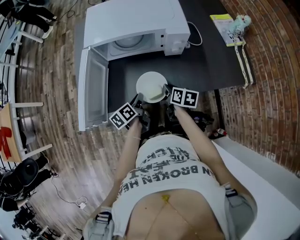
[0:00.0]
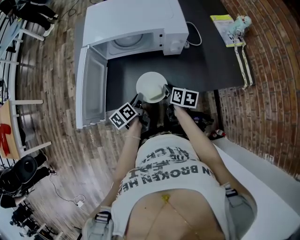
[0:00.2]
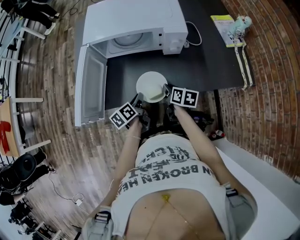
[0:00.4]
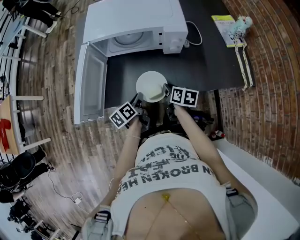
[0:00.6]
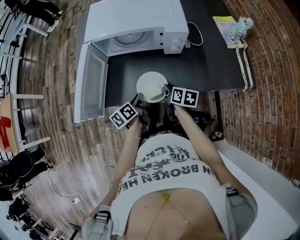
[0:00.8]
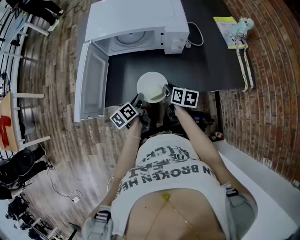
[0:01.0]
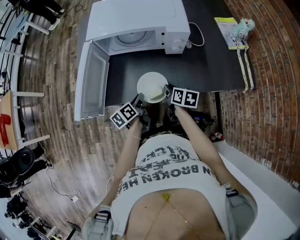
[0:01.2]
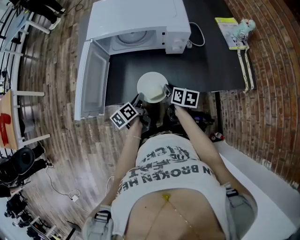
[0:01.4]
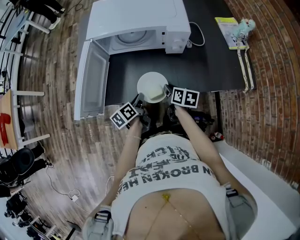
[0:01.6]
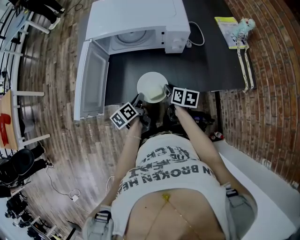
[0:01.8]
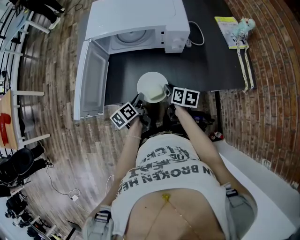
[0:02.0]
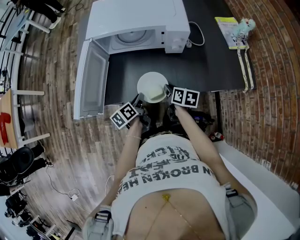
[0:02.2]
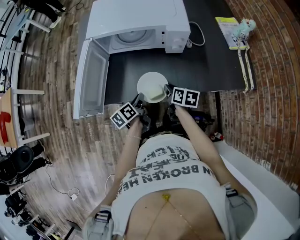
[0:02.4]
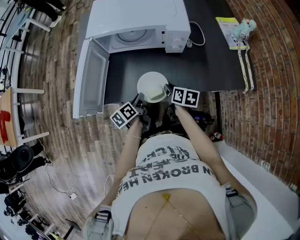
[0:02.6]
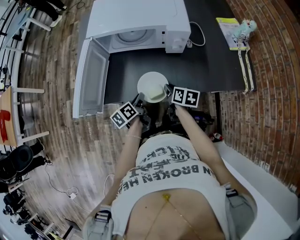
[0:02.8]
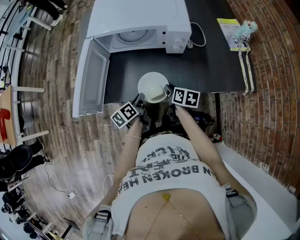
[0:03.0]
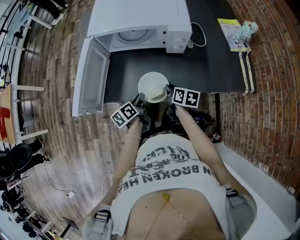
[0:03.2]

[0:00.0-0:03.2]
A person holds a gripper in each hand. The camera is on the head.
0:00.0 to 0:01.6: There are only small adjustments of the grippers.
0:01.6 to 0:03.2: The two grippers keep their place.

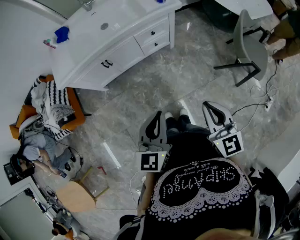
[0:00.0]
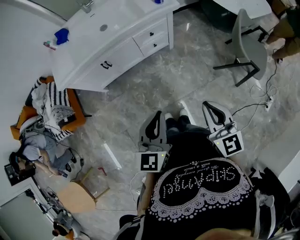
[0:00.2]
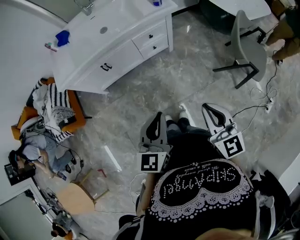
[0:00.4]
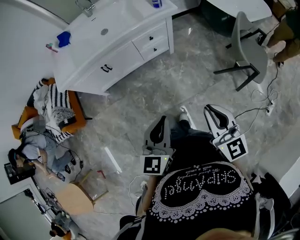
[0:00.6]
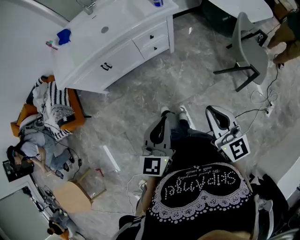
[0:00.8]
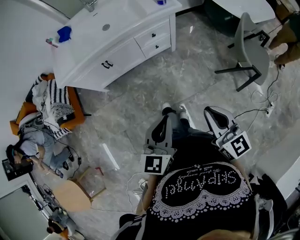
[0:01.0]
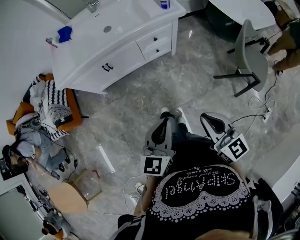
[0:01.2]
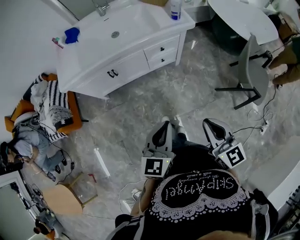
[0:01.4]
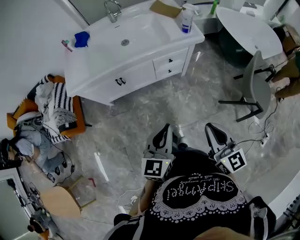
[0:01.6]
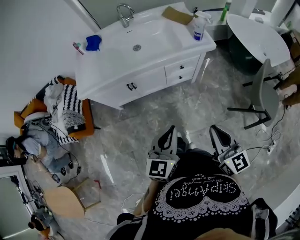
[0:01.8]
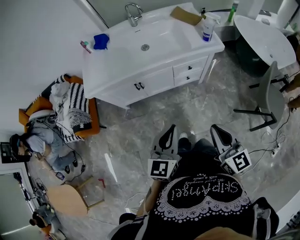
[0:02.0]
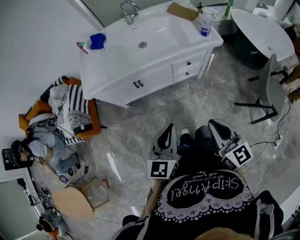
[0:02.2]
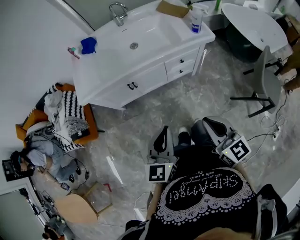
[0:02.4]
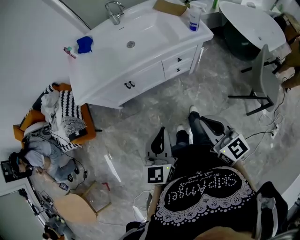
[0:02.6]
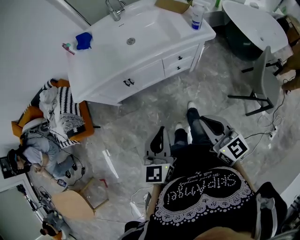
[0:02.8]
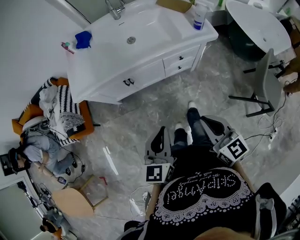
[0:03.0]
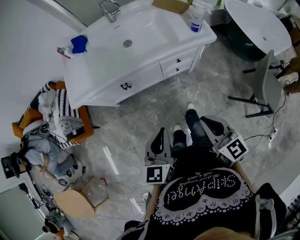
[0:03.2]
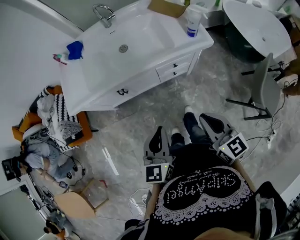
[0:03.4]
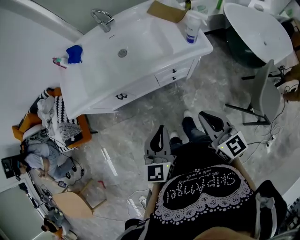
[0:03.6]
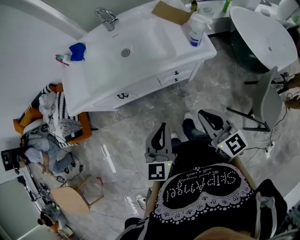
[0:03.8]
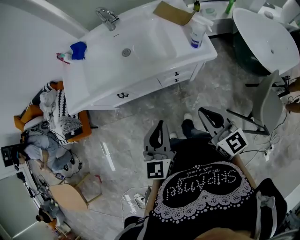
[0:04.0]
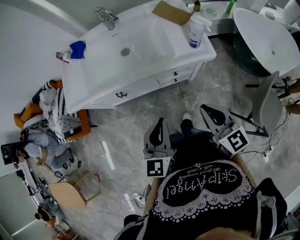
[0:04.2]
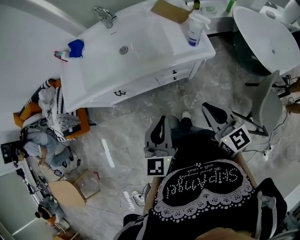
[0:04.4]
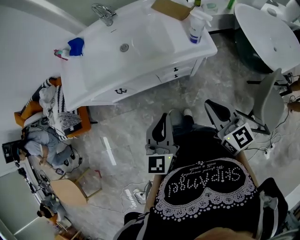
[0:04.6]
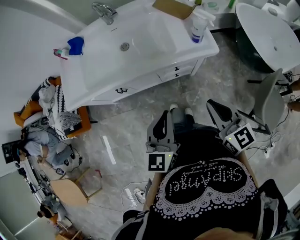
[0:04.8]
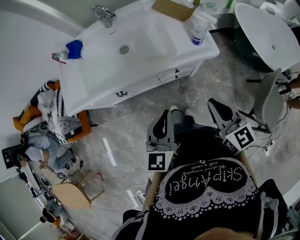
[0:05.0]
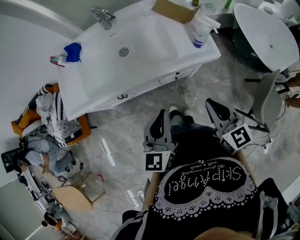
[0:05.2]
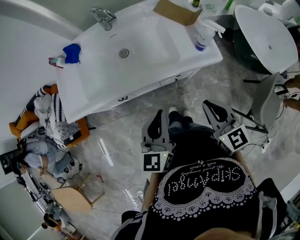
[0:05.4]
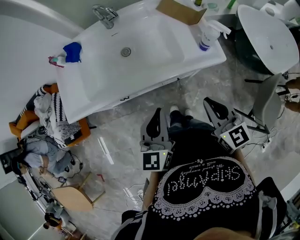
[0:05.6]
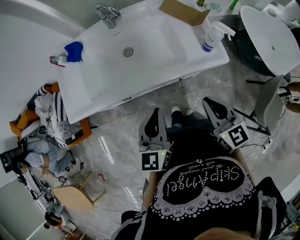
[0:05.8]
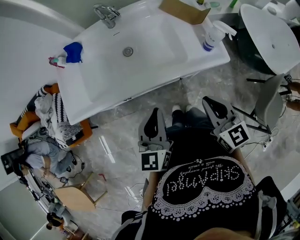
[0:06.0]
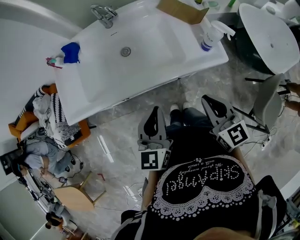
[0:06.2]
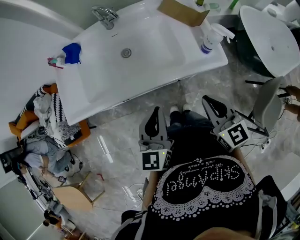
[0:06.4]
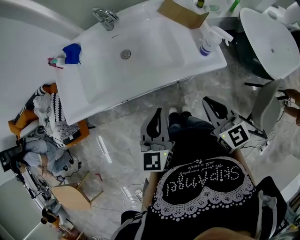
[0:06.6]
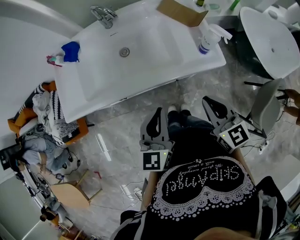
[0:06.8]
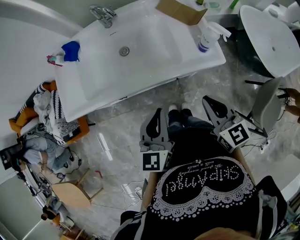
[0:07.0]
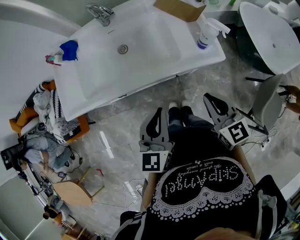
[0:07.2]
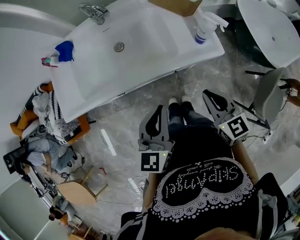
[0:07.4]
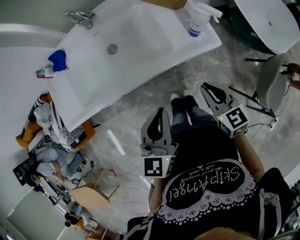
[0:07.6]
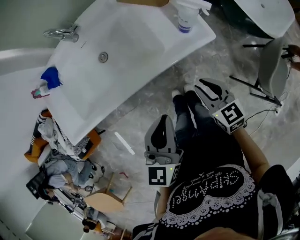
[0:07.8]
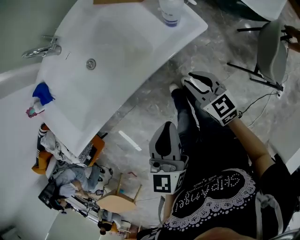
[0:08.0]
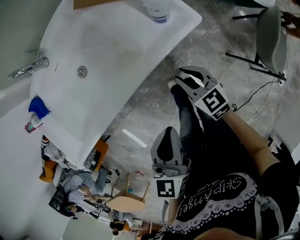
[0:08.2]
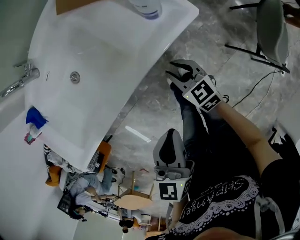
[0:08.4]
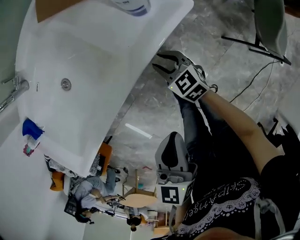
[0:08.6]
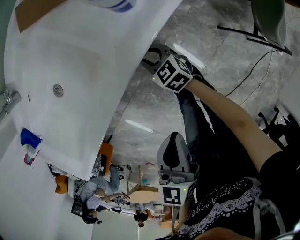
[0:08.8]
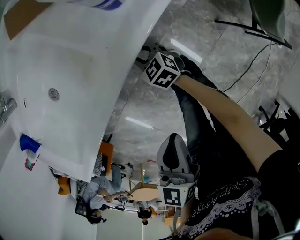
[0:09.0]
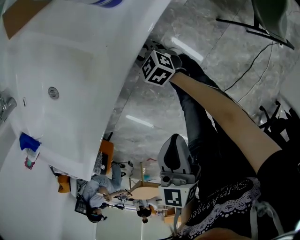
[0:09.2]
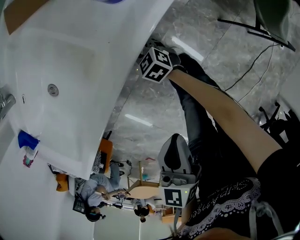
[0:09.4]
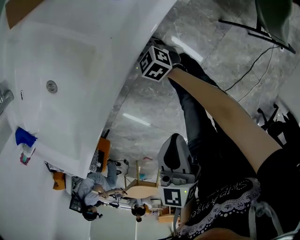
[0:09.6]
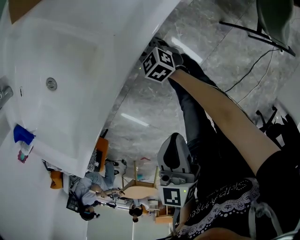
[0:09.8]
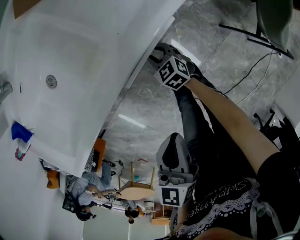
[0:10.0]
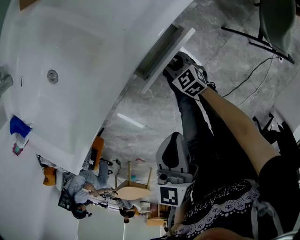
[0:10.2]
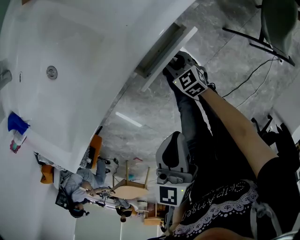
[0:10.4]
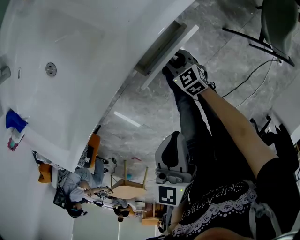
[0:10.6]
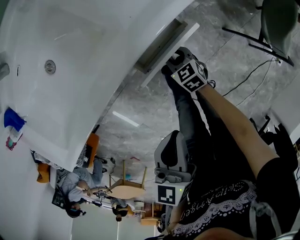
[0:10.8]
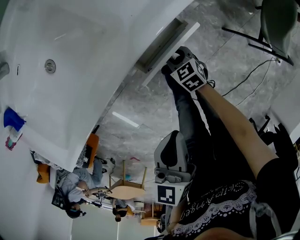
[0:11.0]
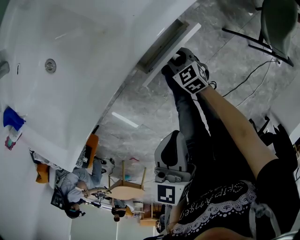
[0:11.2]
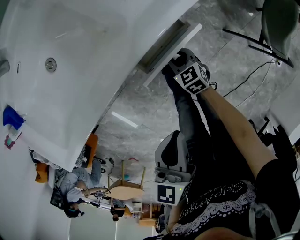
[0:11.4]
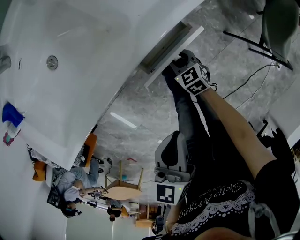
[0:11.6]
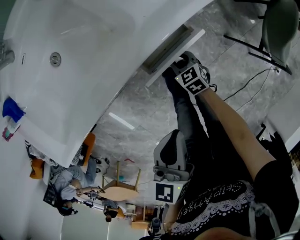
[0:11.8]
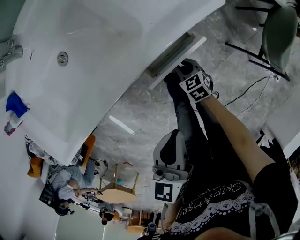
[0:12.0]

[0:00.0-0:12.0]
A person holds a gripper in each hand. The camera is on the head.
0:00.0 to 0:01.6: The grippers both shift forward by about 5 cm.
0:01.6 to 0:03.0: The left gripper is displaced to the left and forward by some 10 cm. Meanwhile the right gripper moves forward and to the left, some 10 cm.
0:03.0 to 0:04.4: Both grippers move to the right and forward, approximately 20 cm.
0:04.4 to 0:06.0: The two grippers go roughly 15 cm forward and to the left.
0:06.0 to 0:07.6: The left gripper goes some 5 cm to the right. Meanwhile the right gripper shifts roughly 10 cm downward and to the right.
0:07.6 to 0:09.0: The left gripper heads downward and to the right, covering approximately 15 cm, and turns by about 30 degrees. Meanwhile the right gripper goes approximately 35 cm downward, and opens.
0:09.0 to 0:10.4: The right gripper heads backward, covering some 10 cm.
0:10.4 to 0:12.0: The grippers stay close to where they were, moving slightly.

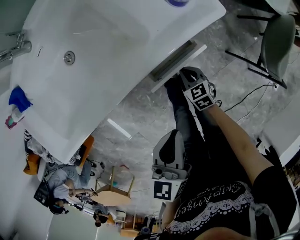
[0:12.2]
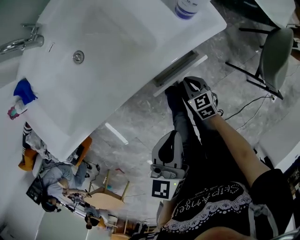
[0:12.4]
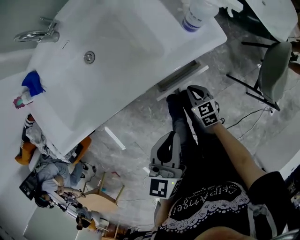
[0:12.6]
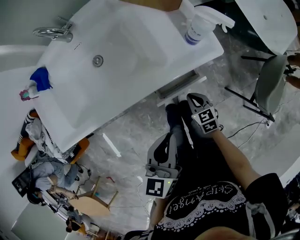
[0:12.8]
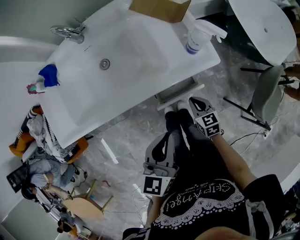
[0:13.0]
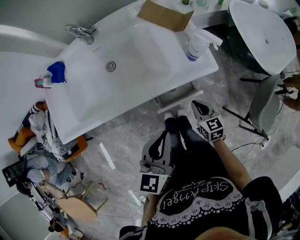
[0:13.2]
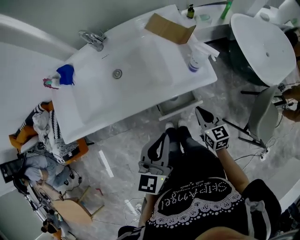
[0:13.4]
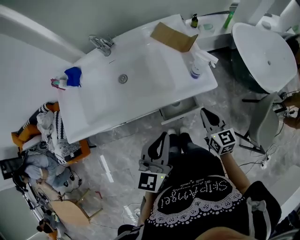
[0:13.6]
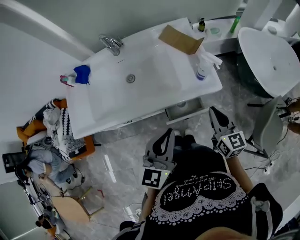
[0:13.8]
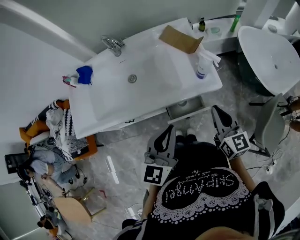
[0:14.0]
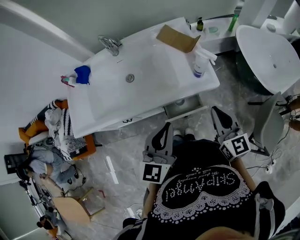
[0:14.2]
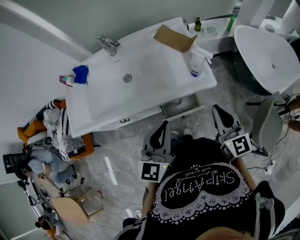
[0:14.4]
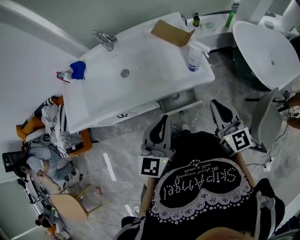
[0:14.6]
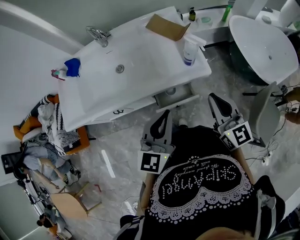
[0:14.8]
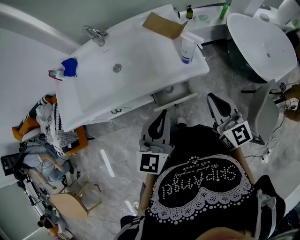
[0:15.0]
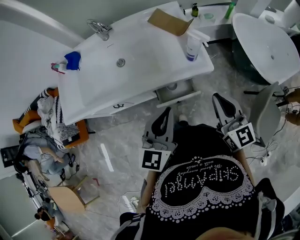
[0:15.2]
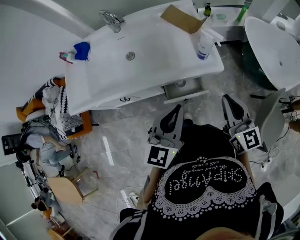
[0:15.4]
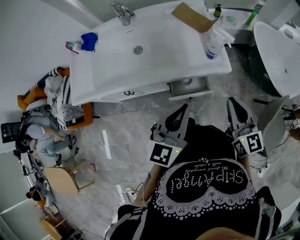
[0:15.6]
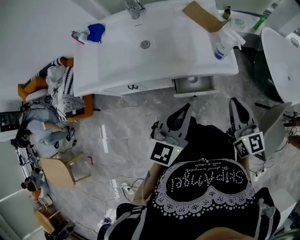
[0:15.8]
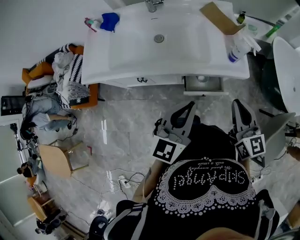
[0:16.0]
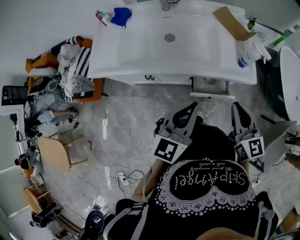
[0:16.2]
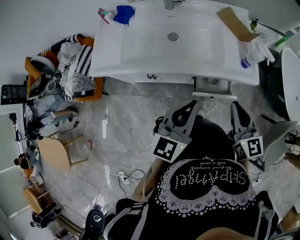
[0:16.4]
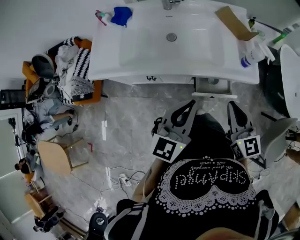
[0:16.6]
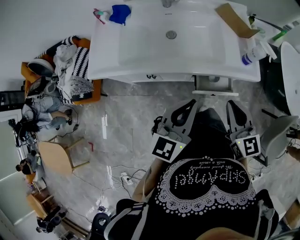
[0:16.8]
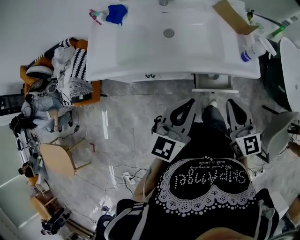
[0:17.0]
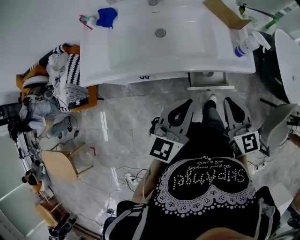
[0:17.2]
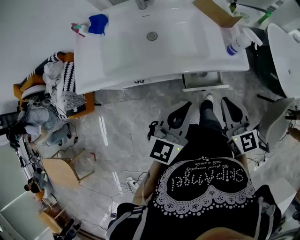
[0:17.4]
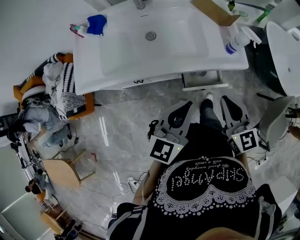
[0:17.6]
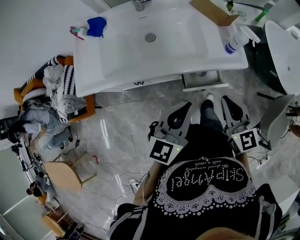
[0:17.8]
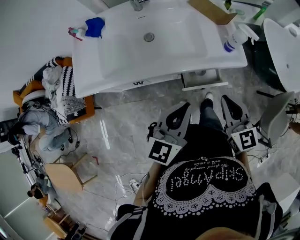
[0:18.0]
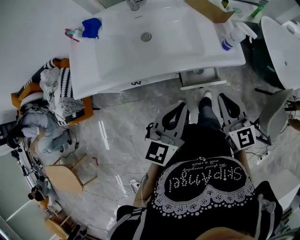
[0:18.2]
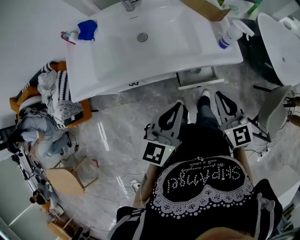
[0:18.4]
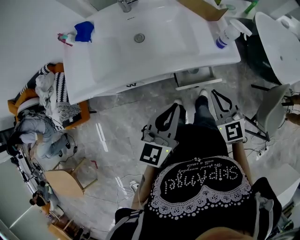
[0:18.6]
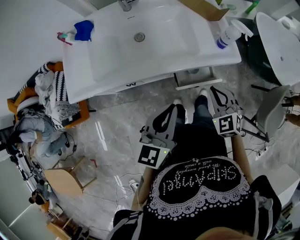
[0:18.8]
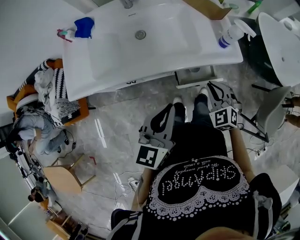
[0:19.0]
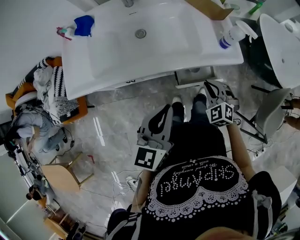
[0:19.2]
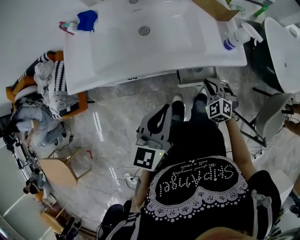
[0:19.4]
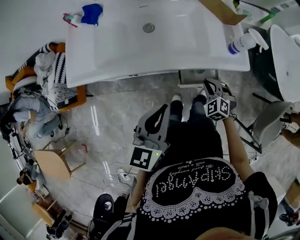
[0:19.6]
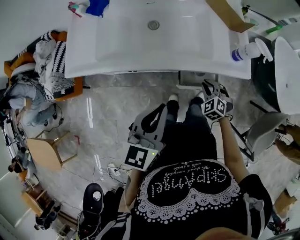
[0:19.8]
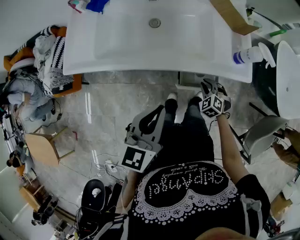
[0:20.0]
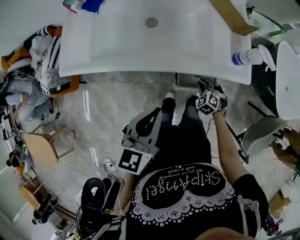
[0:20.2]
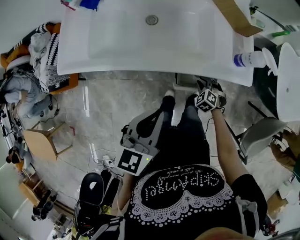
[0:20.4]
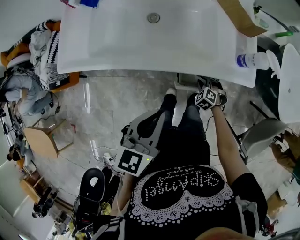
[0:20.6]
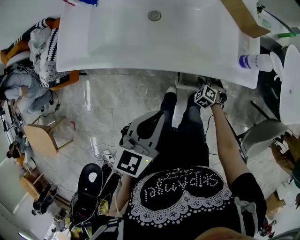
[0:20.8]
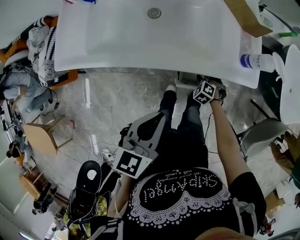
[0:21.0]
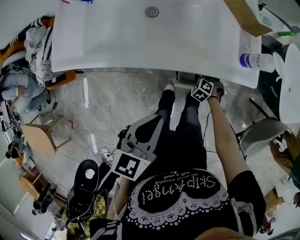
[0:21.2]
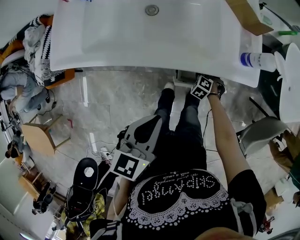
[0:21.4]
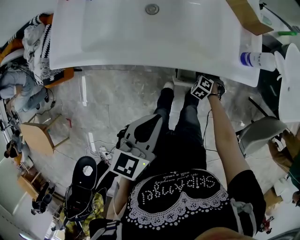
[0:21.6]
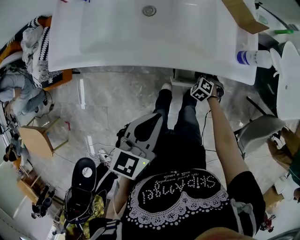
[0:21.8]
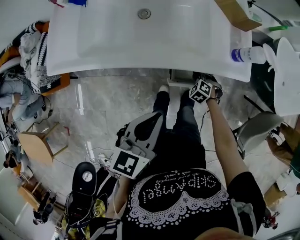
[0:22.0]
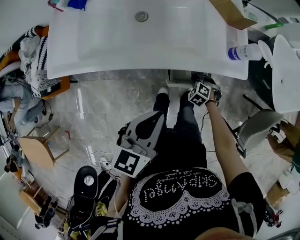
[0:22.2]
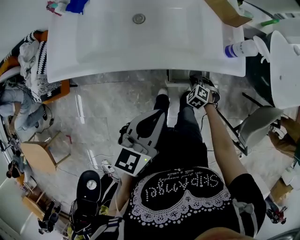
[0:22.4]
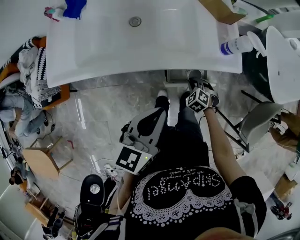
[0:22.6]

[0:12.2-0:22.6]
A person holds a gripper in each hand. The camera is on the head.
0:12.2 to 0:13.6: The right gripper is displaced upward by about 30 cm, and tilts its fingers some 30 degrees upward. Meanwhile the left gripper heads upward, covering about 15 cm, and rotates about 20 degrees.
0:13.6 to 0:15.2: The right gripper goes roughly 10 cm upward.
0:15.2 to 0:16.6: Both grippers move to the left, roughly 15 cm.
0:16.6 to 0:18.2: The grippers stay close to where they were, moving slightly.
0:18.2 to 0:19.6: The right gripper is displaced downward by approximately 25 cm, and angles its fingers downward, by about 30 degrees.
0:19.6 to 0:21.2: The left gripper moves about 5 cm; the right gripper travels downward by roughly 20 cm, and rotates approximately 30 degrees.
0:21.2 to 0:22.6: The right gripper shifts roughly 10 cm upward.
